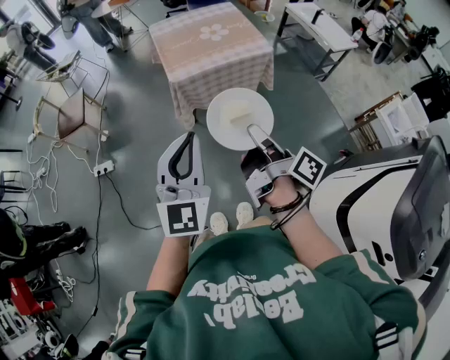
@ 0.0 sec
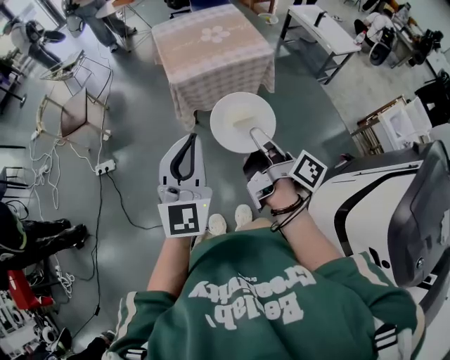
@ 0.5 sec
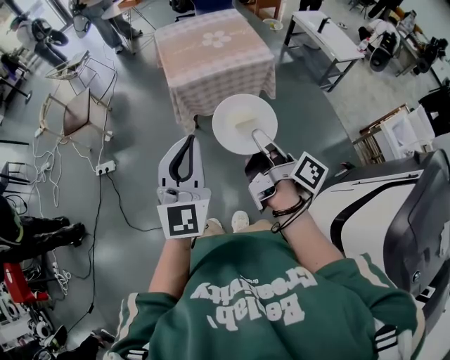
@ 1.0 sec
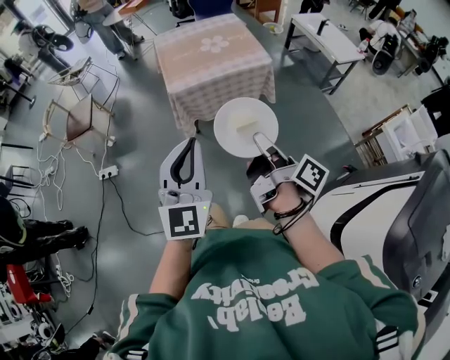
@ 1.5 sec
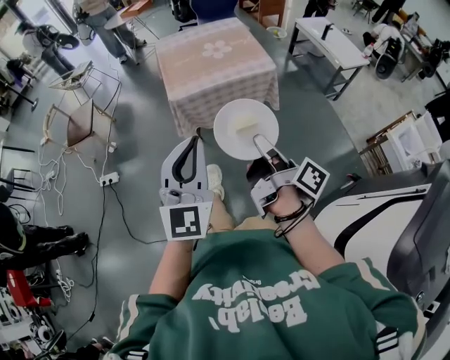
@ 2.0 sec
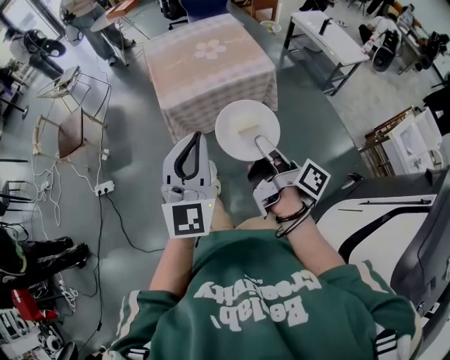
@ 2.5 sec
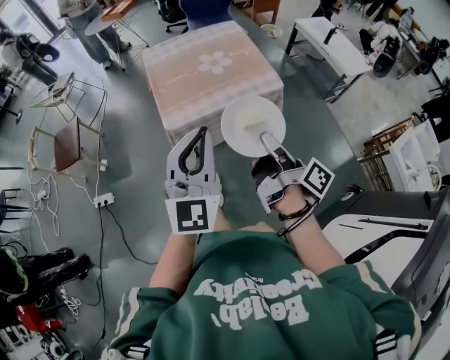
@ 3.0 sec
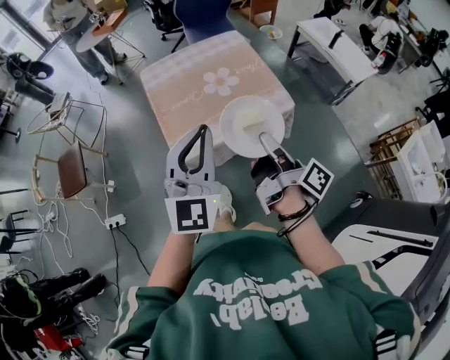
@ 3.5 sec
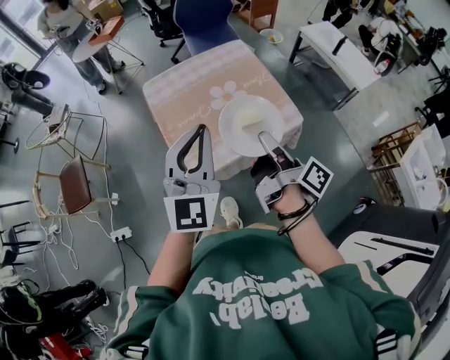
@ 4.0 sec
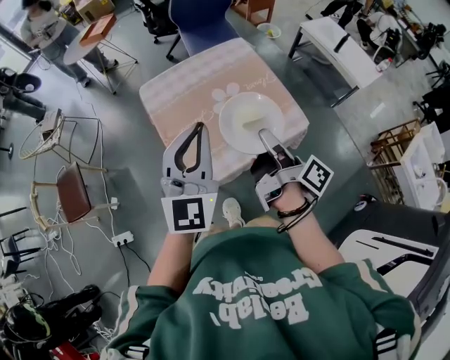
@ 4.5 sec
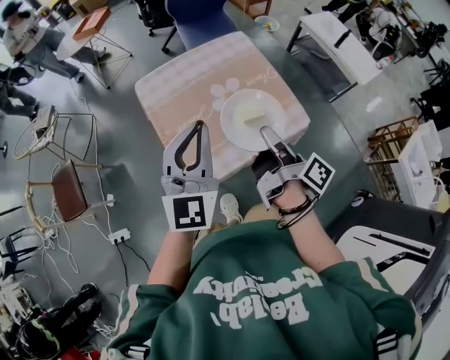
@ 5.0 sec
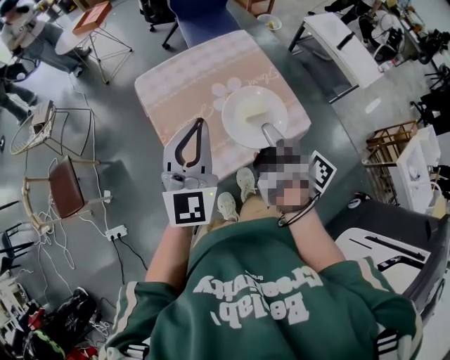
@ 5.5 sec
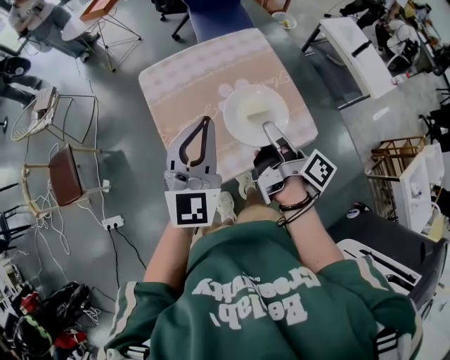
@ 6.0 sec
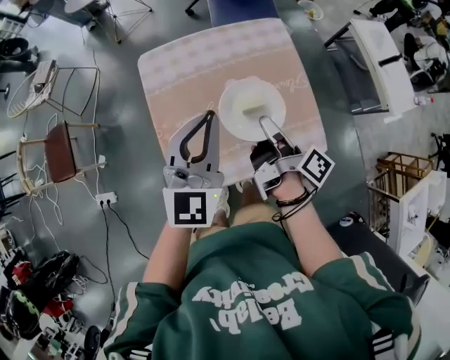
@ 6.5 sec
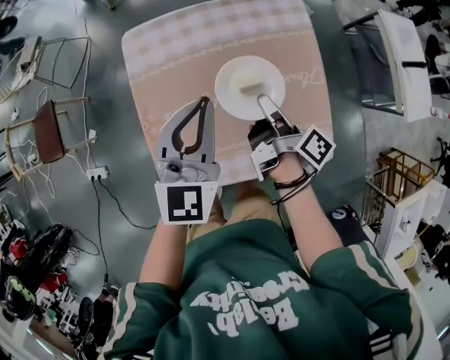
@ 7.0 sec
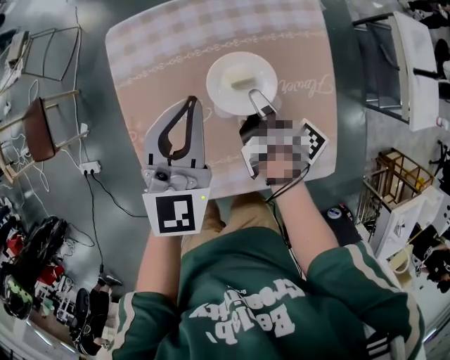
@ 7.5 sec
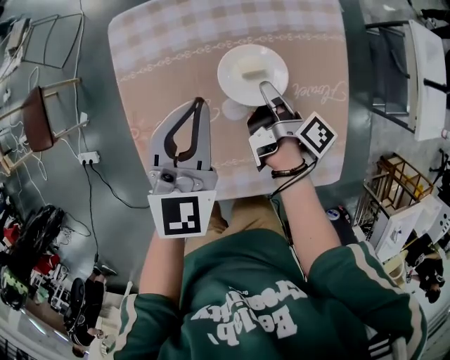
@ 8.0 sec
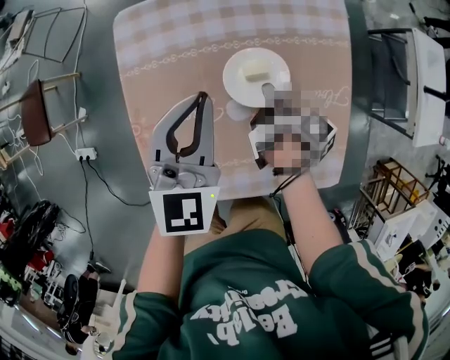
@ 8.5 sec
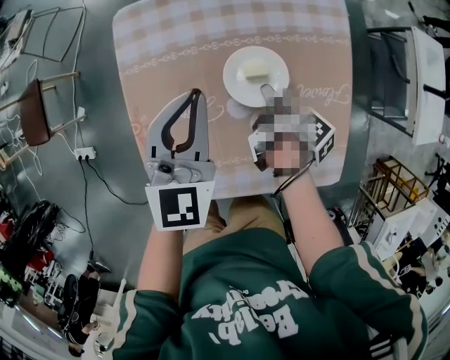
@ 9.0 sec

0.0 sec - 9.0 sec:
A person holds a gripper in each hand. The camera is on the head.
0.0 sec - 2.0 sec: The left gripper moves about 10 cm.
2.0 sec - 4.5 sec: The left gripper moves some 50 cm.
4.5 sec - 7.0 sec: The left gripper shifts by approximately 30 cm.
7.0 sec - 9.0 sec: The left gripper shifts roughly 10 cm downward.

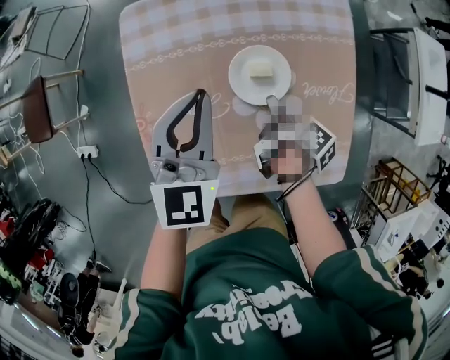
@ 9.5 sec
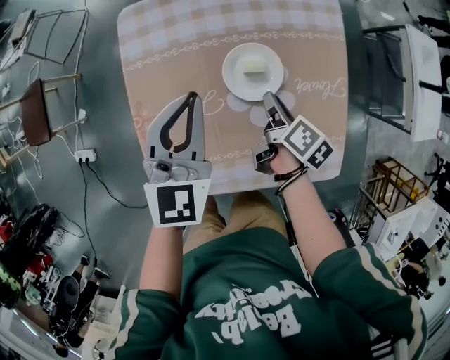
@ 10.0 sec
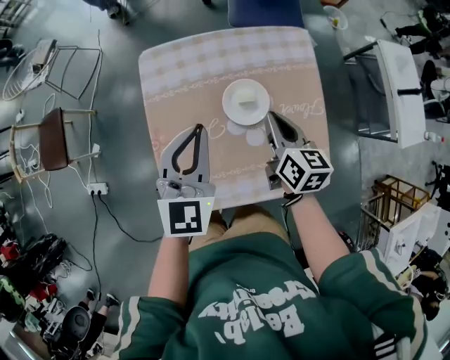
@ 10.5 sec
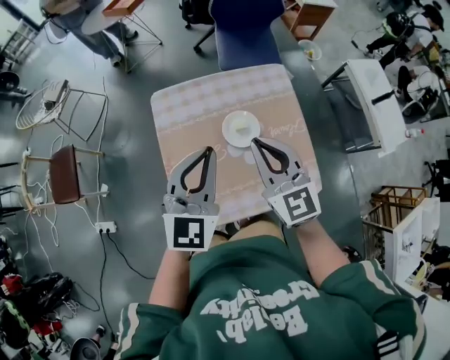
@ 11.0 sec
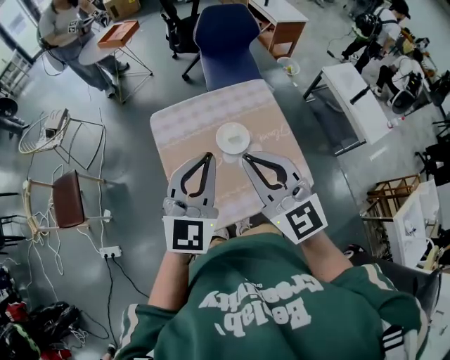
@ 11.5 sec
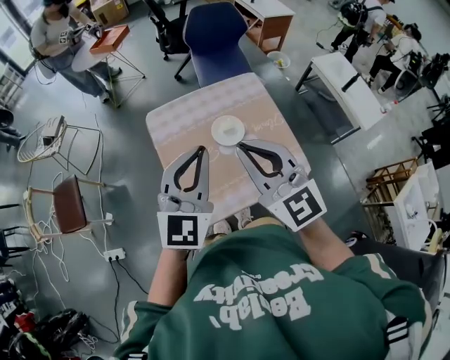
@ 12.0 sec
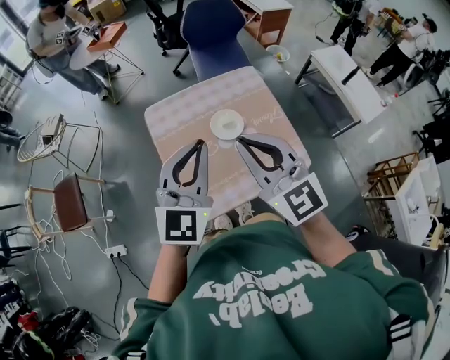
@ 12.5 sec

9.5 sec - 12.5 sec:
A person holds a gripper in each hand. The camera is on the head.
9.5 sec - 11.0 sec: The left gripper is displaced upward by approximately 20 cm.
11.0 sec - 12.5 sec: The left gripper shifts some 10 cm upward.
